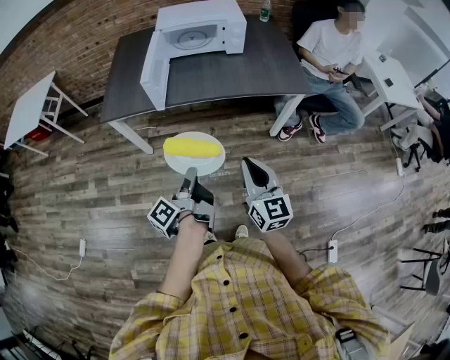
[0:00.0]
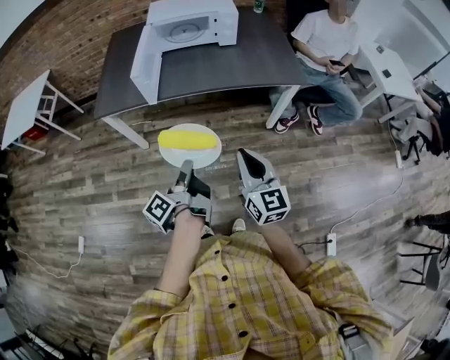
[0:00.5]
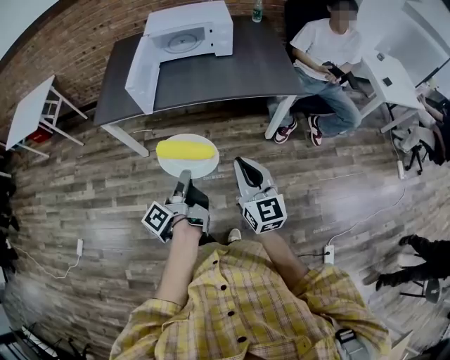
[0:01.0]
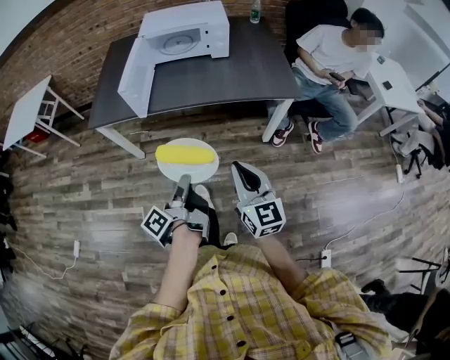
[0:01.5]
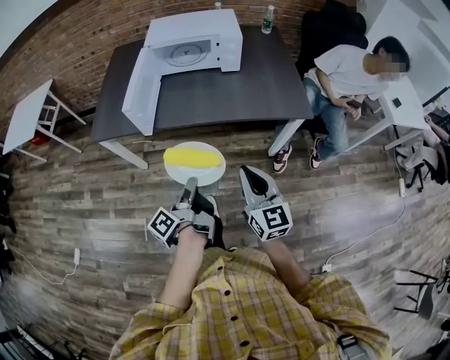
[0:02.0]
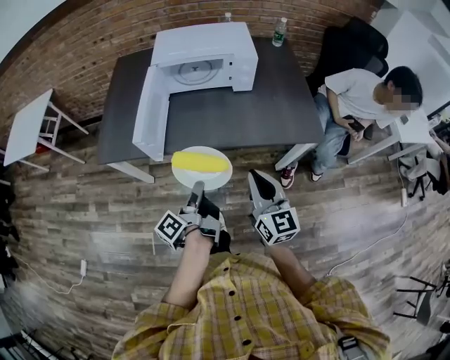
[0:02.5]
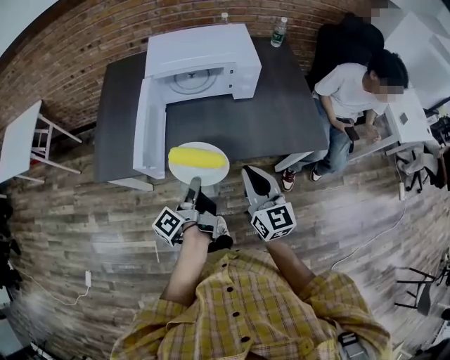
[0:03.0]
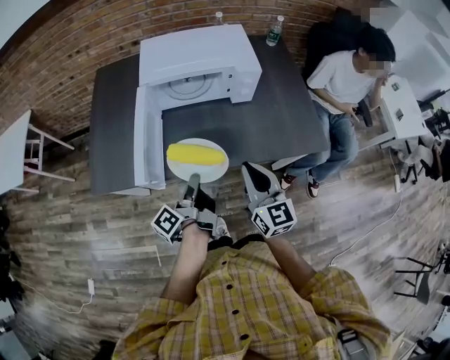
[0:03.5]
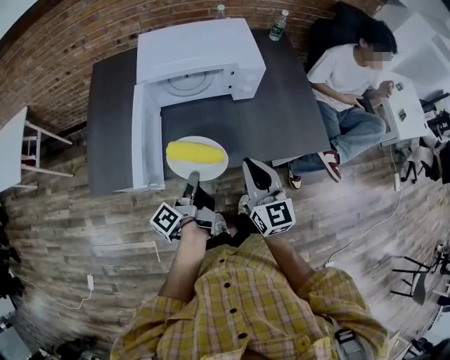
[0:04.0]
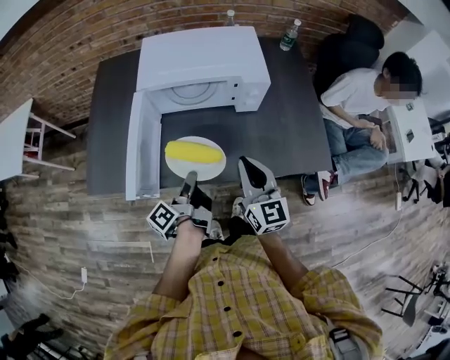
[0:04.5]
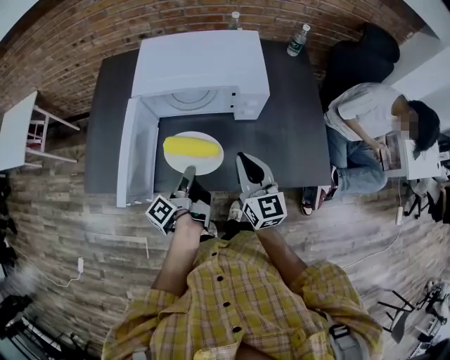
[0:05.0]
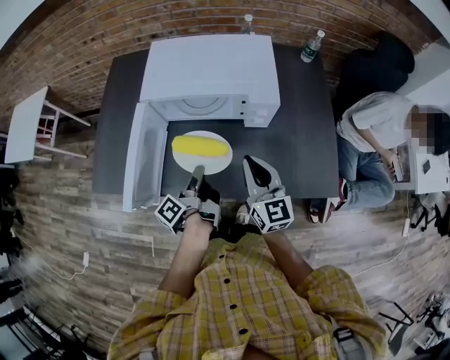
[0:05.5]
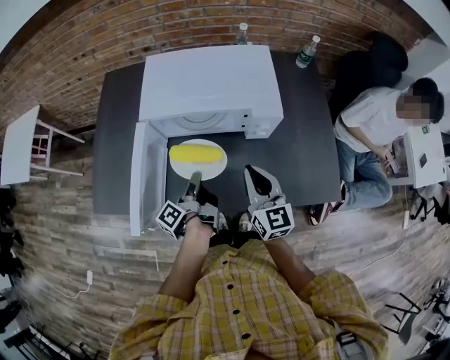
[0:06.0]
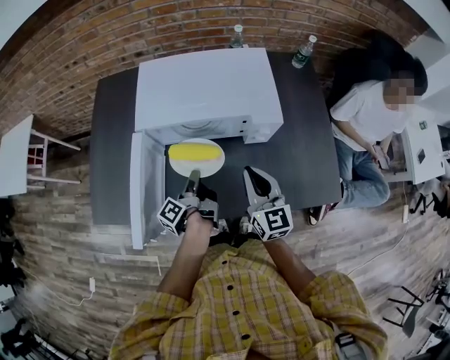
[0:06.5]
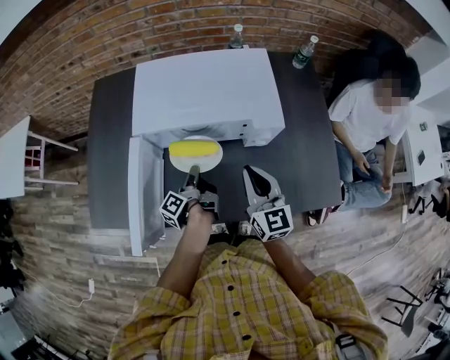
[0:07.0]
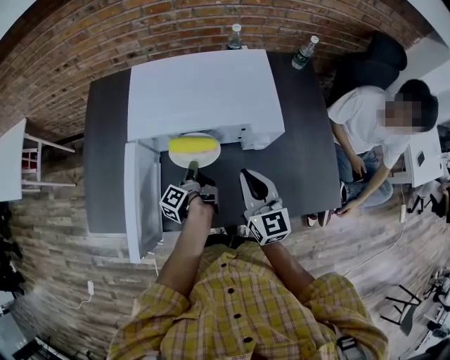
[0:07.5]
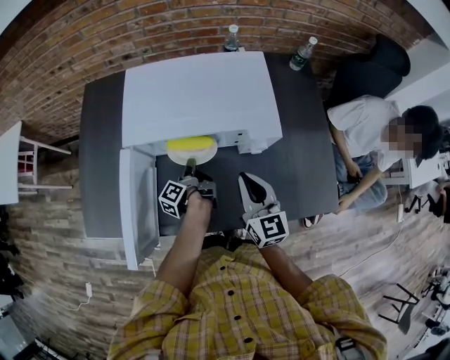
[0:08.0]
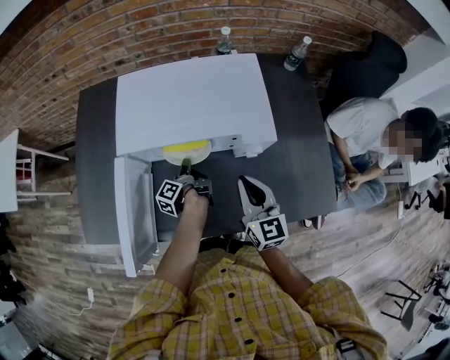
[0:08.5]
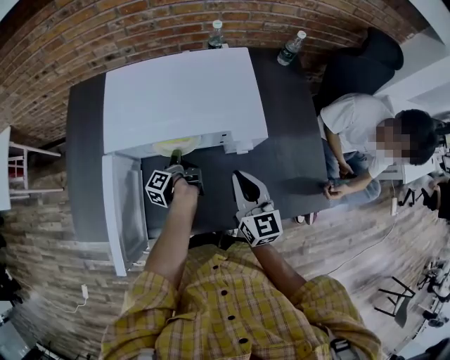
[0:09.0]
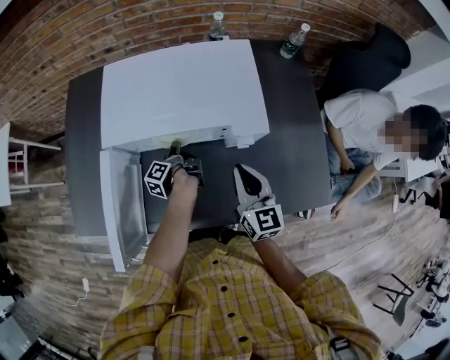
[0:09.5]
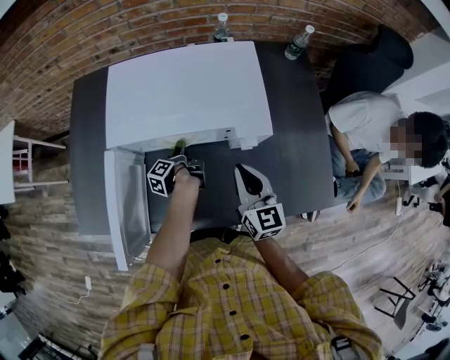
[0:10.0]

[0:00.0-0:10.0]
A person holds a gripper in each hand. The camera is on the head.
0:00.0 to 0:02.0: The right gripper moves approximately 15 cm.
0:02.0 to 0:04.0: The right gripper ends up some 30 cm from where it was.
0:04.0 to 0:06.0: The right gripper moves some 15 cm.
0:06.0 to 0:08.0: The right gripper changes place by some 5 cm.

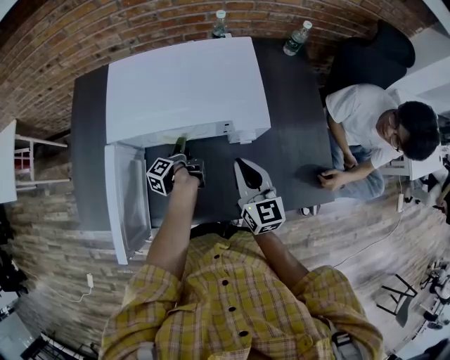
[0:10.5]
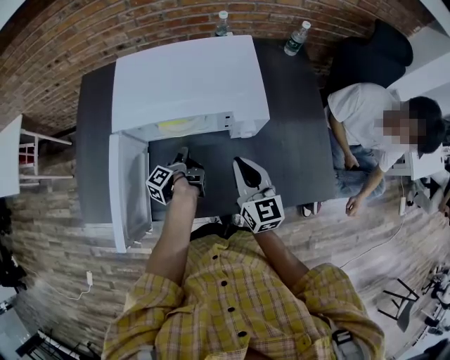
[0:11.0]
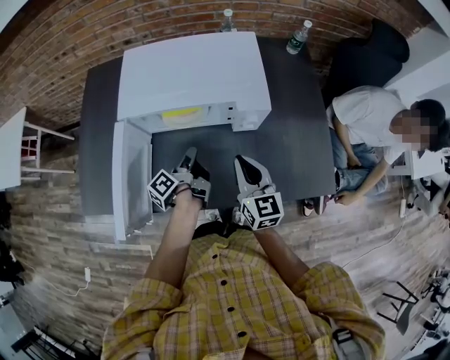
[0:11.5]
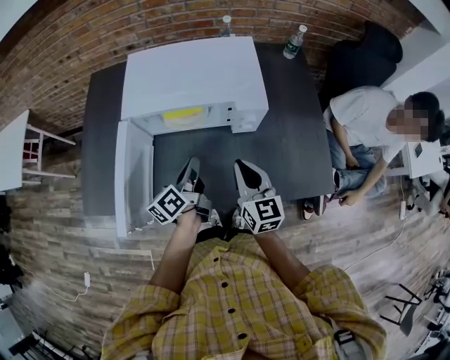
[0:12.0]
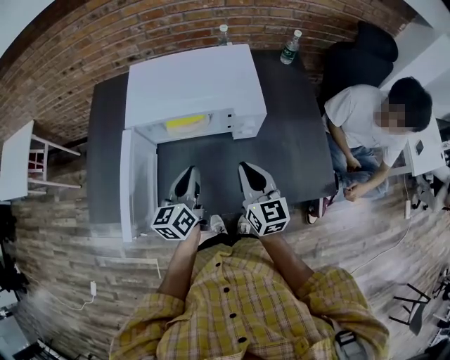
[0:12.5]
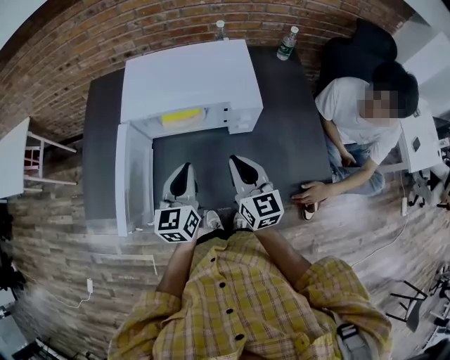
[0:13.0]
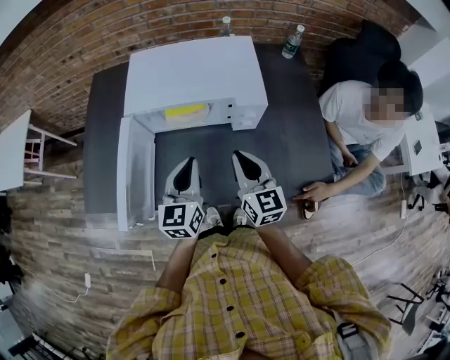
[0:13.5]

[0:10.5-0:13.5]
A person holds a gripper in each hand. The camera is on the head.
0:10.5 to 0:12.0: The right gripper changes place by approximately 10 cm.

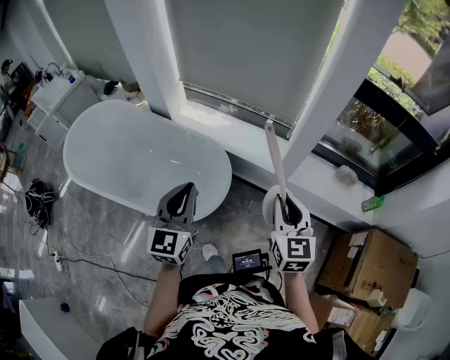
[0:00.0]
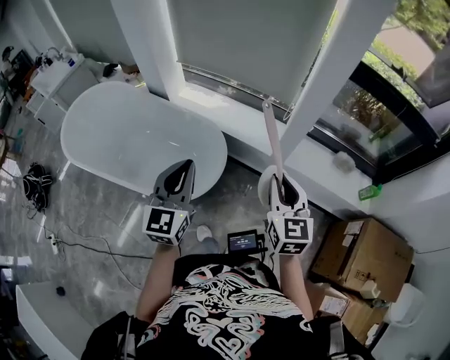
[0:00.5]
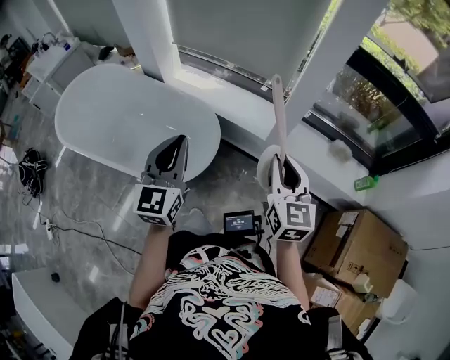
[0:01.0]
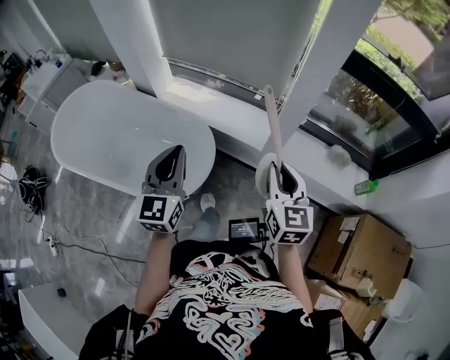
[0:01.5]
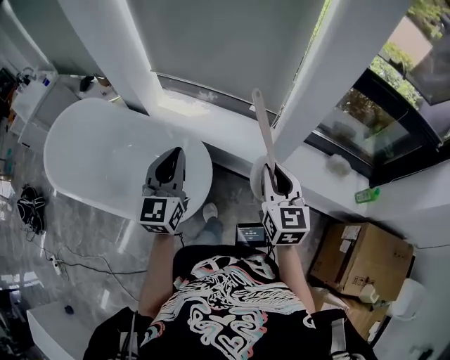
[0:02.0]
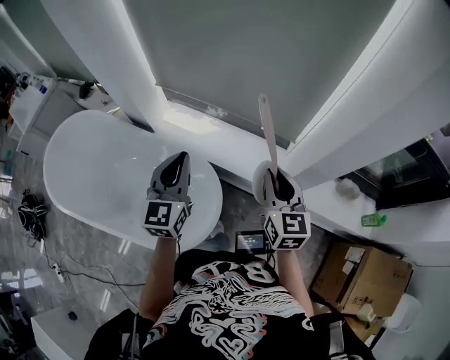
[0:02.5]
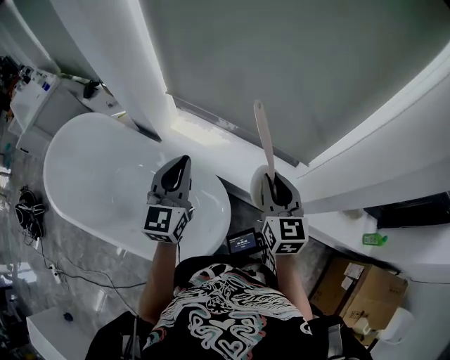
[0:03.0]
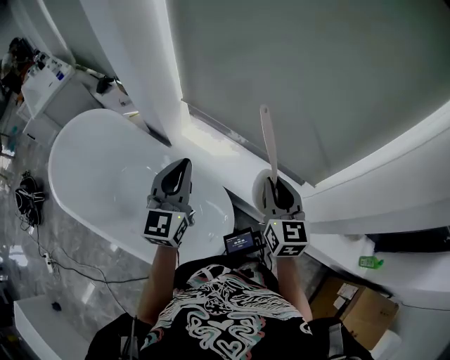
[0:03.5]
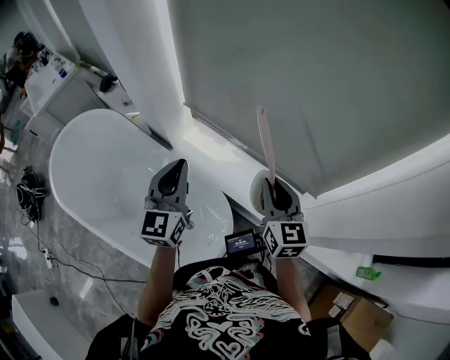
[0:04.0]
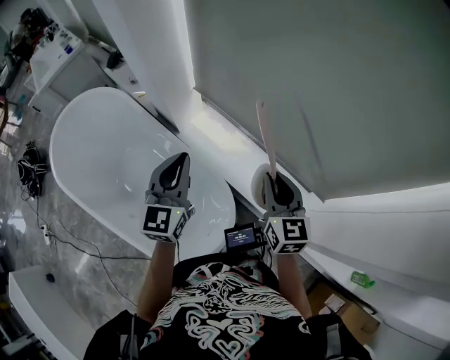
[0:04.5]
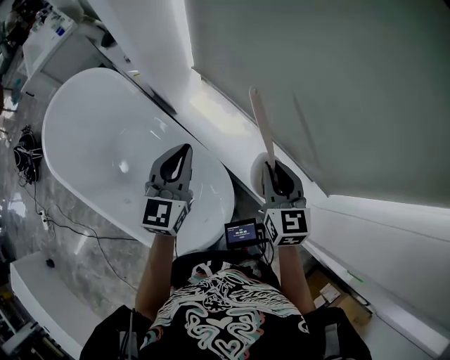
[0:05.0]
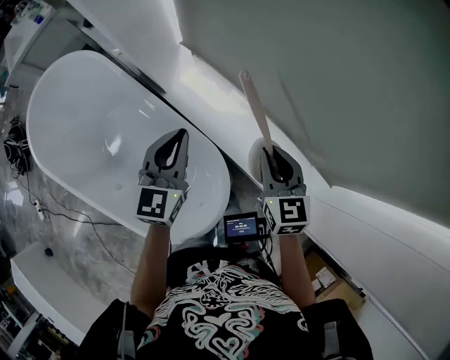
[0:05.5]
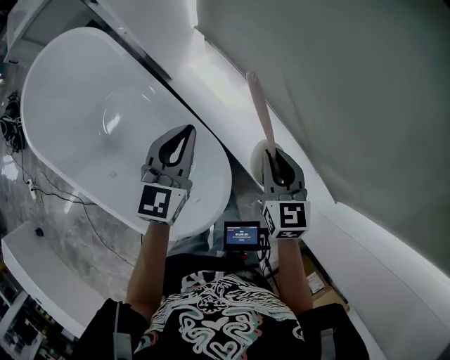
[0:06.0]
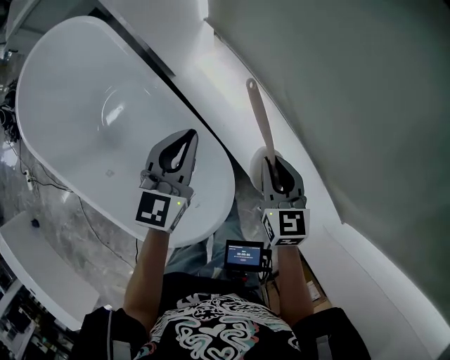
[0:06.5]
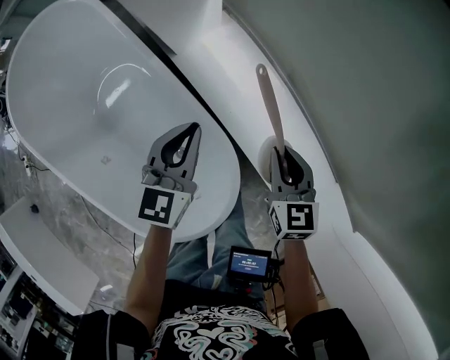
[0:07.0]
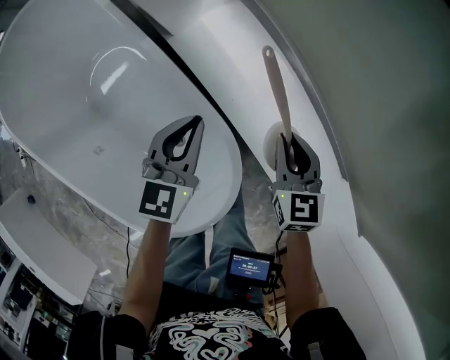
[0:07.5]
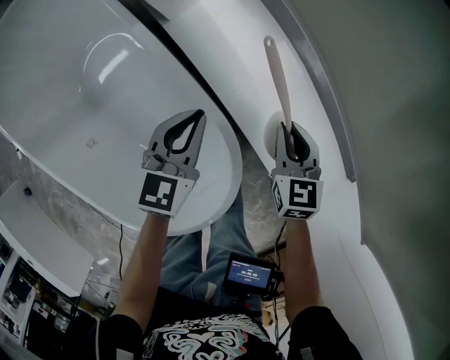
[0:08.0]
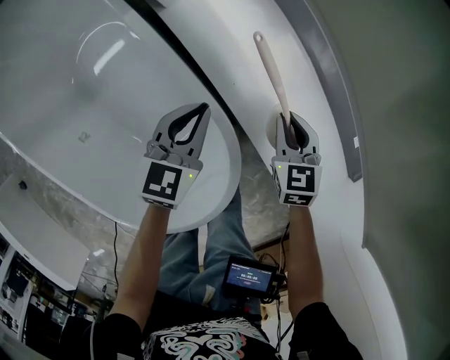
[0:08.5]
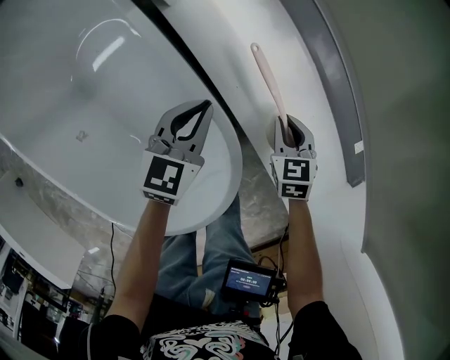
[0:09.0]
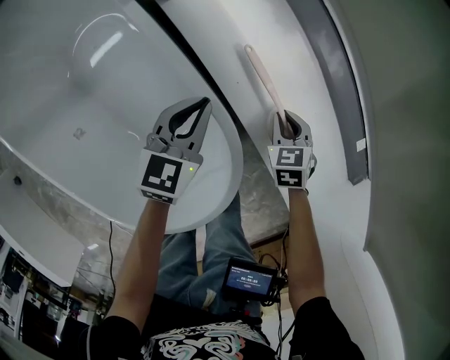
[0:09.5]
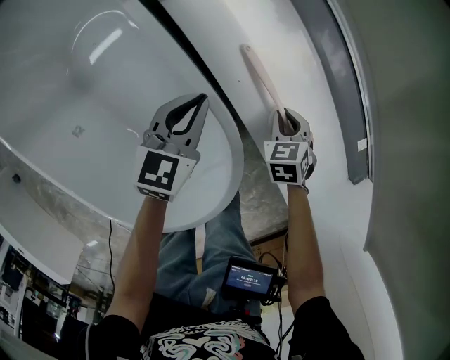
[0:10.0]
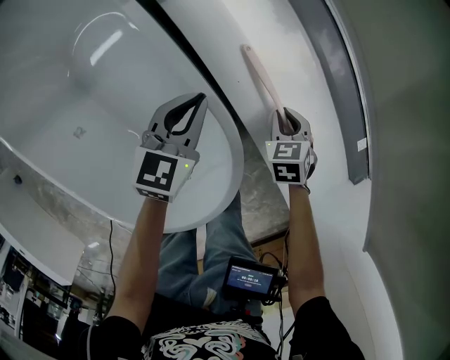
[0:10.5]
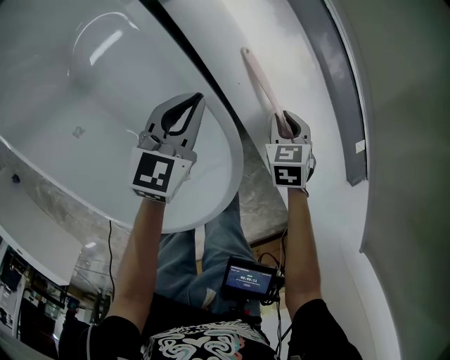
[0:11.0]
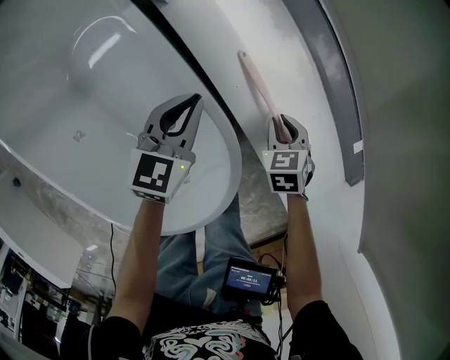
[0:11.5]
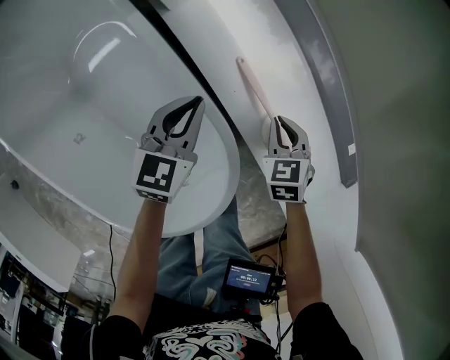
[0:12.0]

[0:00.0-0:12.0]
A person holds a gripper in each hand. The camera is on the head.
0:00.0 to 0:02.0: Both grippers travel together forward, approximately 15 cm.
0:02.0 to 0:04.0: Both grippers travel together forward and to the left, about 35 cm.
0:04.0 to 0:06.0: Both grippers travel together downward and forward, some 25 cm. The right gripper rotates roughly 20 degrees.
0:06.0 to 0:08.0: The two grippers go about 30 cm downward.
0:08.0 to 0:10.0: The right gripper heads downward, covering about 15 cm, and changes its angle by some 30 degrees. Meanwhile the left gripper travels downward by about 10 cm.
0:10.0 to 0:12.0: The right gripper moves upward, approximately 5 cm.

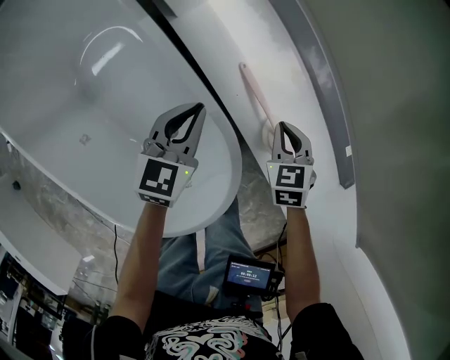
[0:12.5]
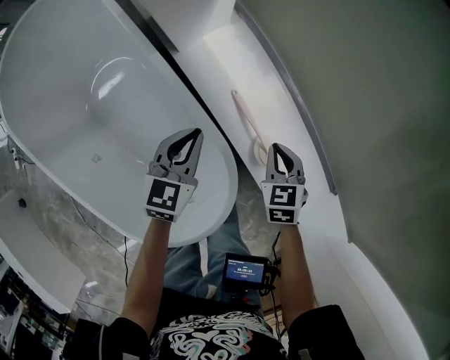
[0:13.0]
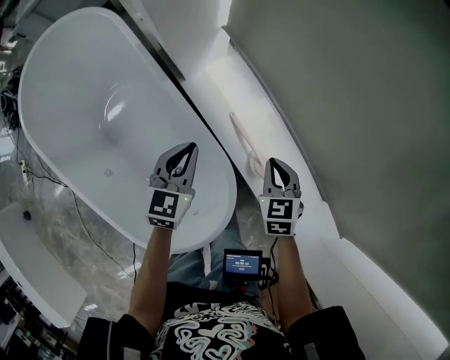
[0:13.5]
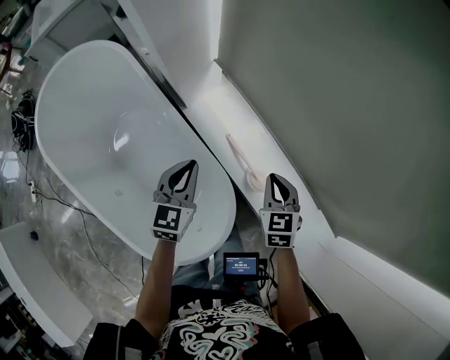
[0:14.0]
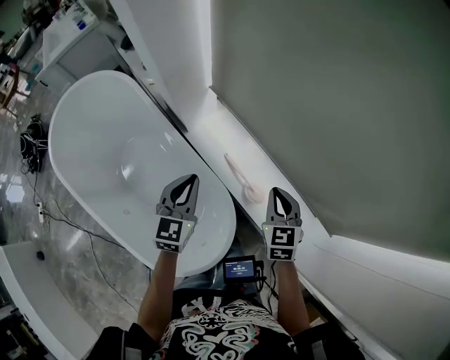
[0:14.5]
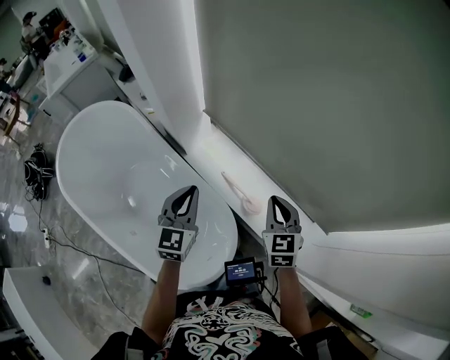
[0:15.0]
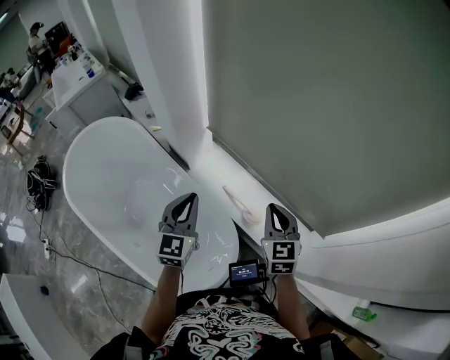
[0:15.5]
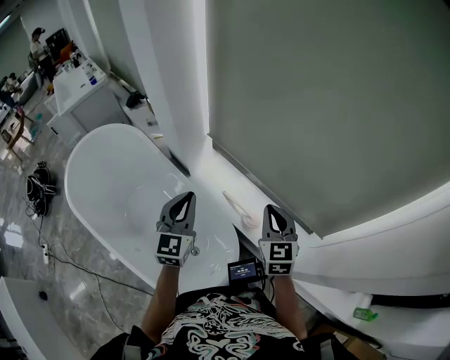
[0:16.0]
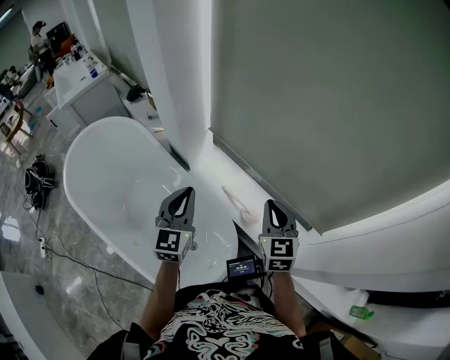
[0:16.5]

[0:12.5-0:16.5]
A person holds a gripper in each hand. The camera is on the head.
0:12.5 to 0:14.5: Both grippers move upward, about 35 cm. The right gripper changes its angle by approximately 30 degrees.
0:14.5 to 0:16.5: Both grippers move upward and backward, some 20 cm.
